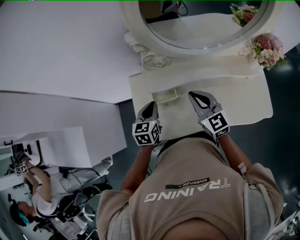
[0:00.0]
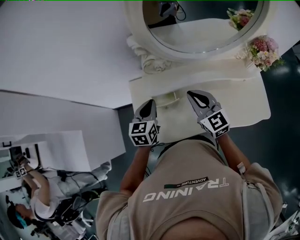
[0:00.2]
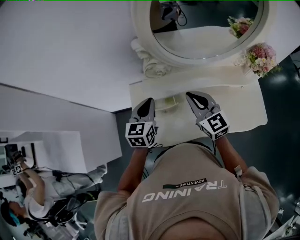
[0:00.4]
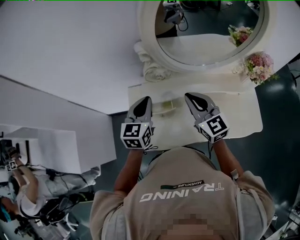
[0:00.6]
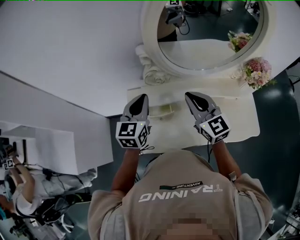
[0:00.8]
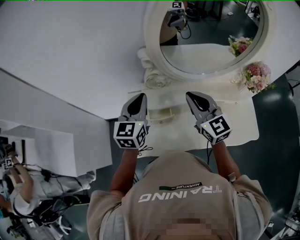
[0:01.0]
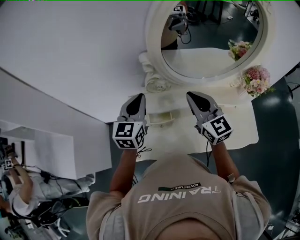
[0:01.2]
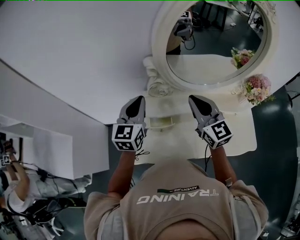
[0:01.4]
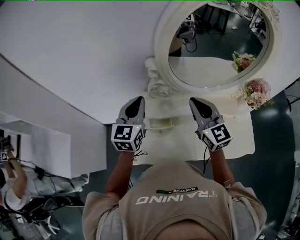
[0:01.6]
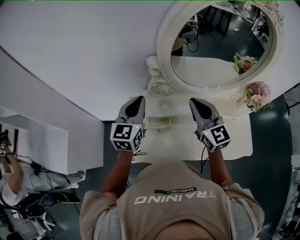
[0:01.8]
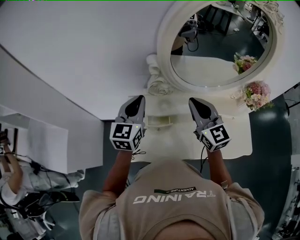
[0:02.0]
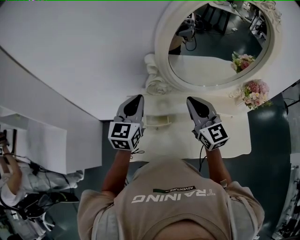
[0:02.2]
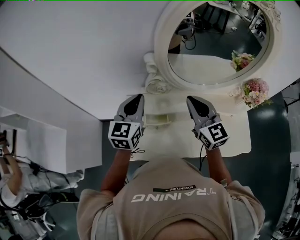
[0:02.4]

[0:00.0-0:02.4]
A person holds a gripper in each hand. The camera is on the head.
0.0 to 1.2 s: The grippers both shift upward by approximately 15 cm. The left gripper changes its angle by approximately 20 degrees.
1.2 to 2.4 s: There are only small adjustments of the grippers.

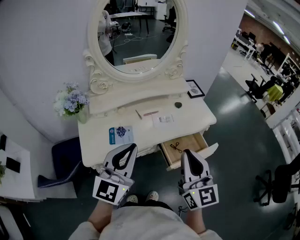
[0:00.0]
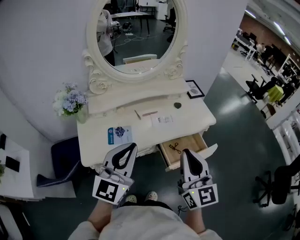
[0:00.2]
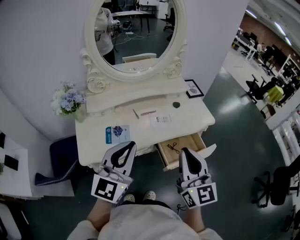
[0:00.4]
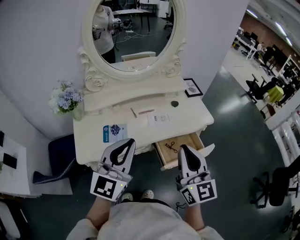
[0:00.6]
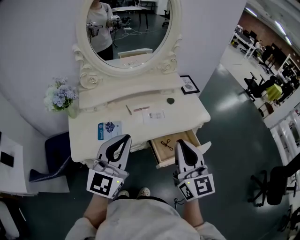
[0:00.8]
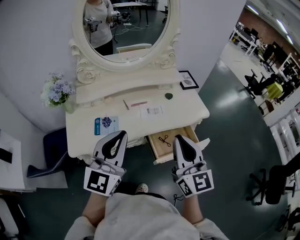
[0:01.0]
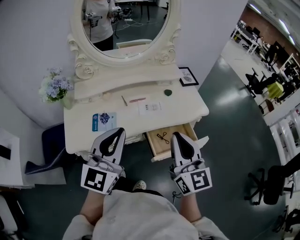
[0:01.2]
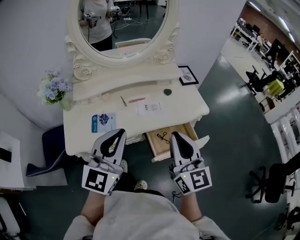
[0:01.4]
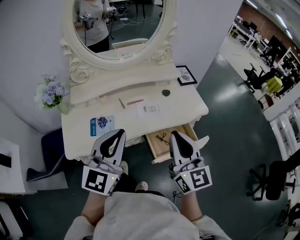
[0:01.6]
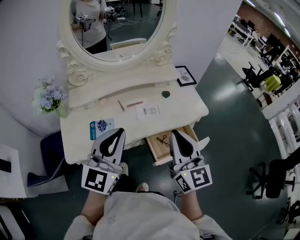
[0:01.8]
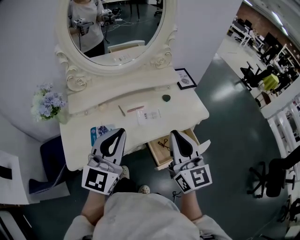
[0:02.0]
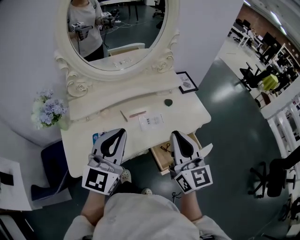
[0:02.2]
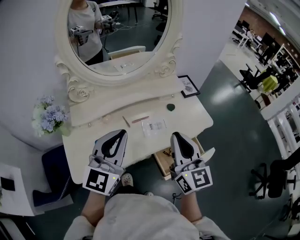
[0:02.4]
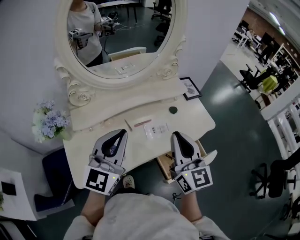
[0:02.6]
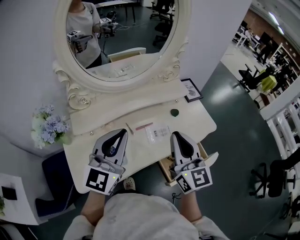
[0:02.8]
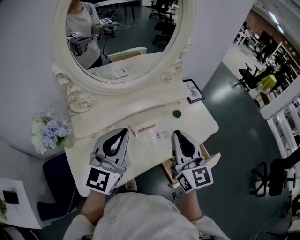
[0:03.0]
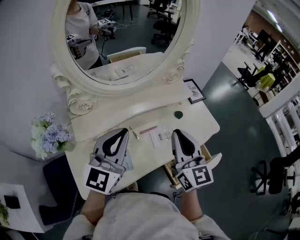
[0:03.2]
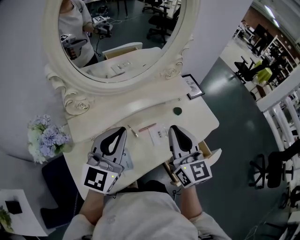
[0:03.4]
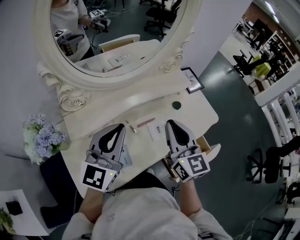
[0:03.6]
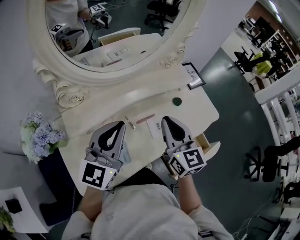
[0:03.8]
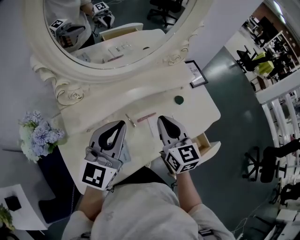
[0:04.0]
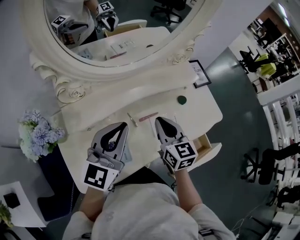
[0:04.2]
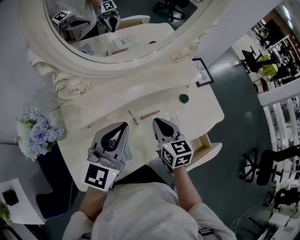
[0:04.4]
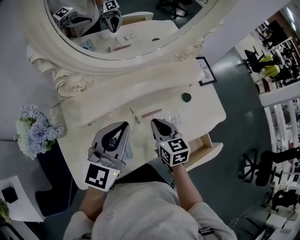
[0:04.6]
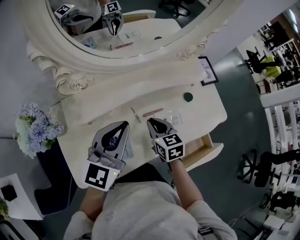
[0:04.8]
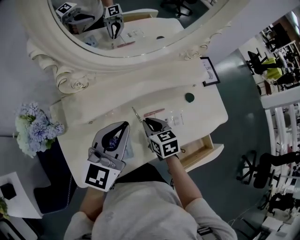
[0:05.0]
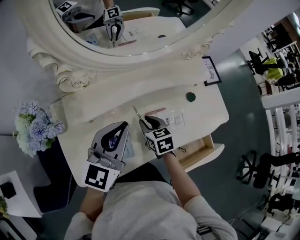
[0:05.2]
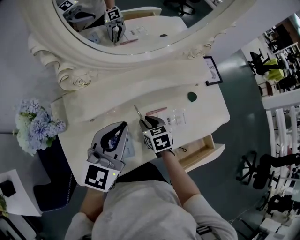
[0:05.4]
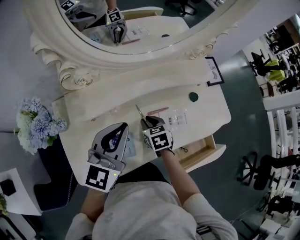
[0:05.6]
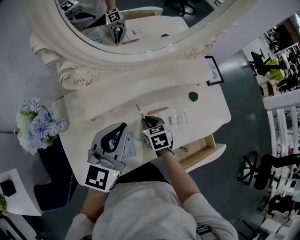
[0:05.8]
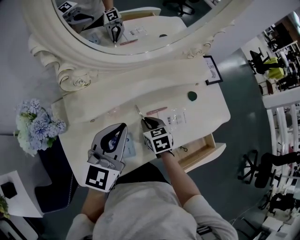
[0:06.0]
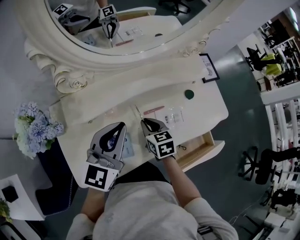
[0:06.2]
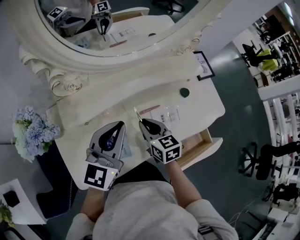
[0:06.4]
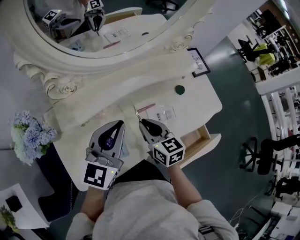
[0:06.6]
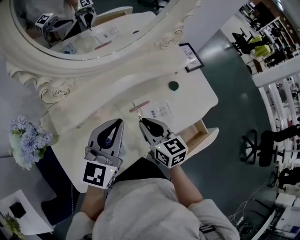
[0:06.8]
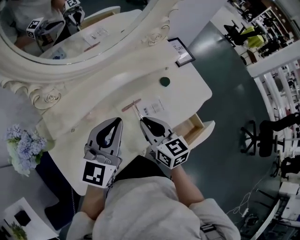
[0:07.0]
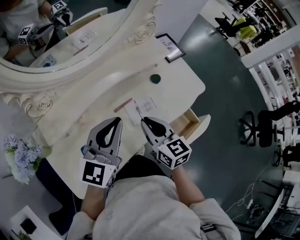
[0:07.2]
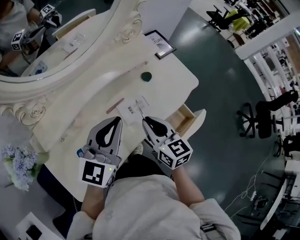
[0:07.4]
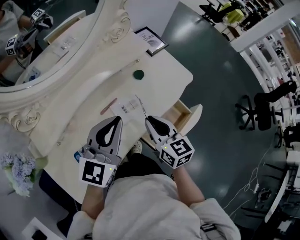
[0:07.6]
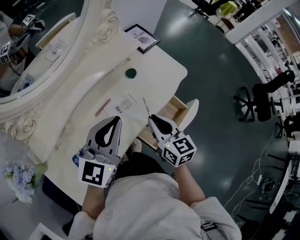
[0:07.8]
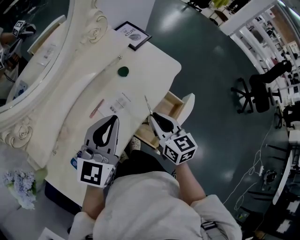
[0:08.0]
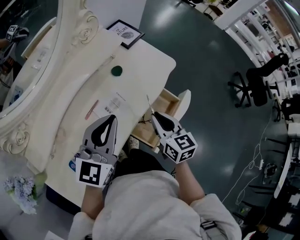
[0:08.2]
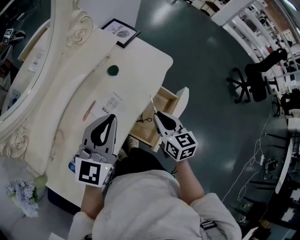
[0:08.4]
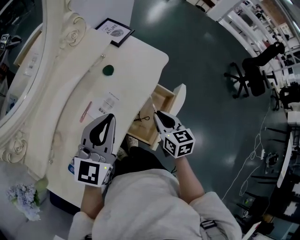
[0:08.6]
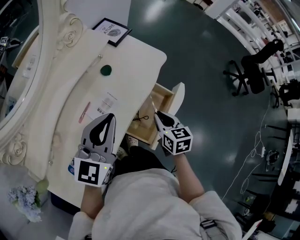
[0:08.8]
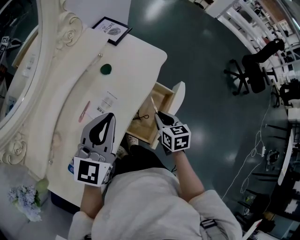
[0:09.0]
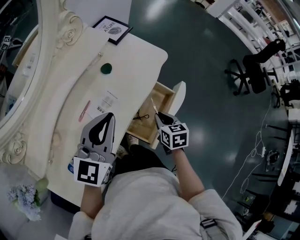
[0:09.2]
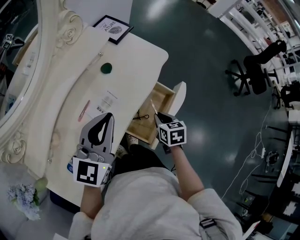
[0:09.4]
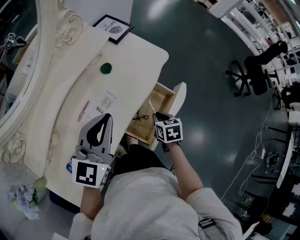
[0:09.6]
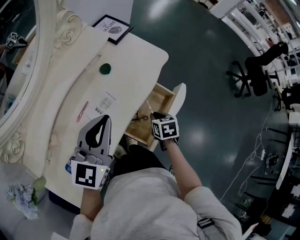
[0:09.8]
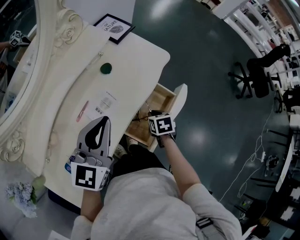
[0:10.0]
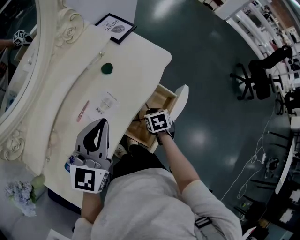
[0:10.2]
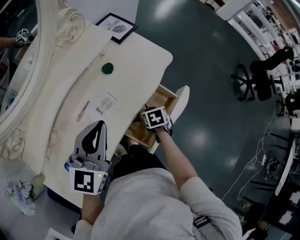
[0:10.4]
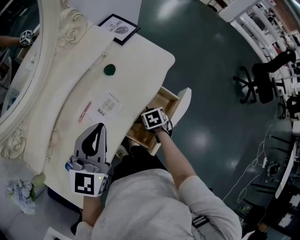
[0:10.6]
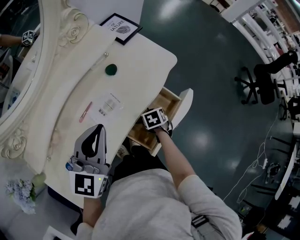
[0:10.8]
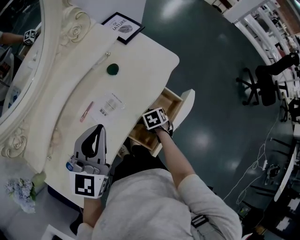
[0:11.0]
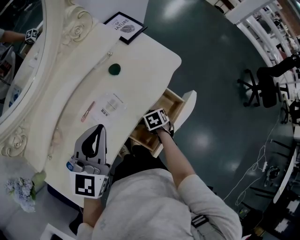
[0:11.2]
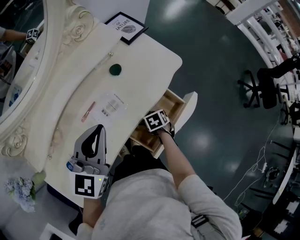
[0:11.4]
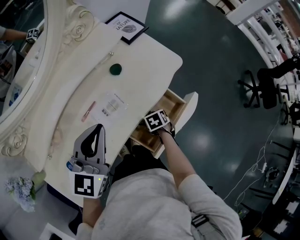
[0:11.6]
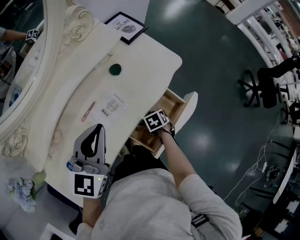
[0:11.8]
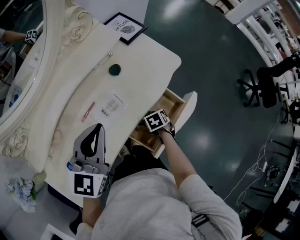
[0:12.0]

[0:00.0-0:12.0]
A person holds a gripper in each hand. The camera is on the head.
0.0 to 1.6 s: The right gripper goes some 10 cm forward and to the right. Meanwhile the left gripper travels to the right and forward by approximately 10 cm.
1.6 to 3.0 s: The two grippers go some 20 cm forward and to the left.
3.0 to 4.4 s: The left gripper shifts roughly 10 cm downward and forward; the right gripper shifts roughly 20 cm downward, forward and to the left, and swivels about 30 degrees.
4.4 to 6.0 s: The right gripper heads downward and to the left, covering some 15 cm, and rotates some 20 degrees.
6.0 to 7.6 s: The left gripper shifts roughly 20 cm to the right, and rotates approximately 20 degrees, while the right gripper shifts roughly 25 cm to the right and upward, and rotates approximately 40 degrees.
7.6 to 9.0 s: The right gripper travels to the right and downward by approximately 20 cm, and rotates about 30 degrees. Meanwhile the left gripper heads to the right, covering approximately 10 cm.
9.0 to 10.4 s: The right gripper is displaced downward by approximately 10 cm, and changes its angle by roughly 30 degrees.
10.4 to 12.0 s: The right gripper changes place by about 5 cm.

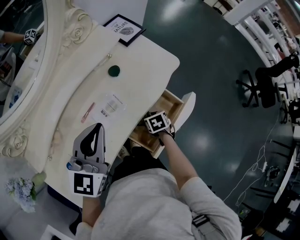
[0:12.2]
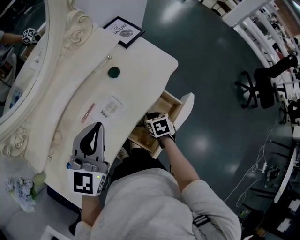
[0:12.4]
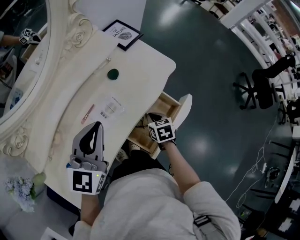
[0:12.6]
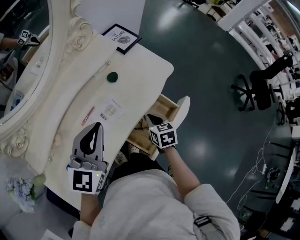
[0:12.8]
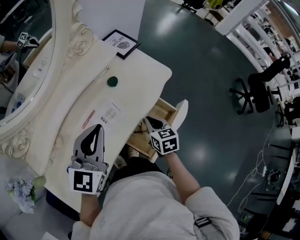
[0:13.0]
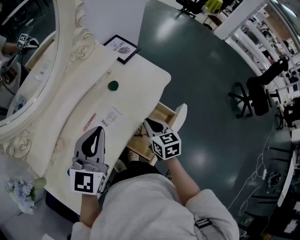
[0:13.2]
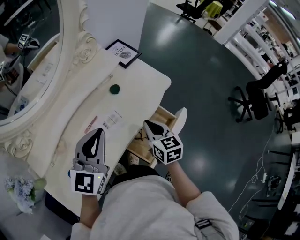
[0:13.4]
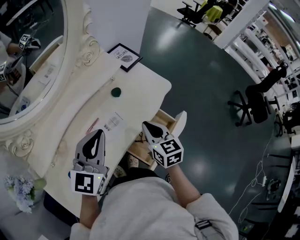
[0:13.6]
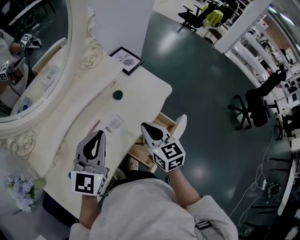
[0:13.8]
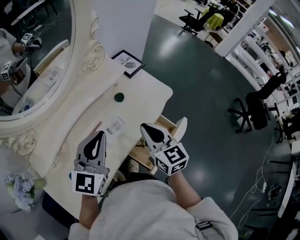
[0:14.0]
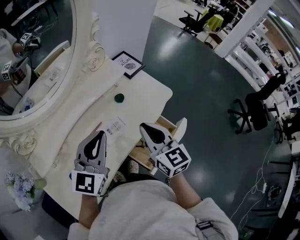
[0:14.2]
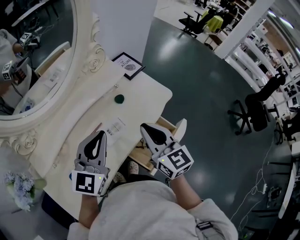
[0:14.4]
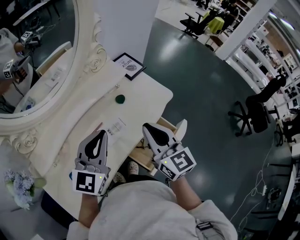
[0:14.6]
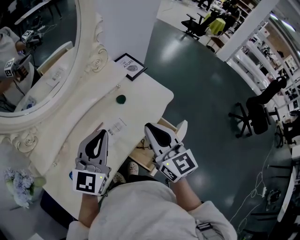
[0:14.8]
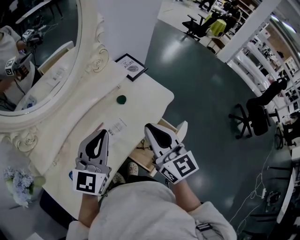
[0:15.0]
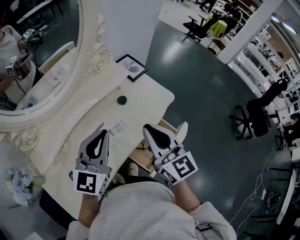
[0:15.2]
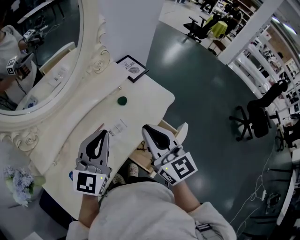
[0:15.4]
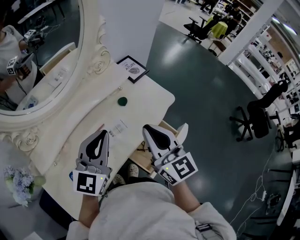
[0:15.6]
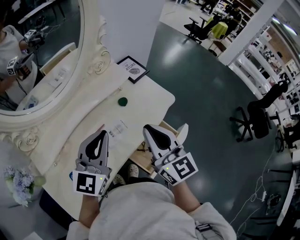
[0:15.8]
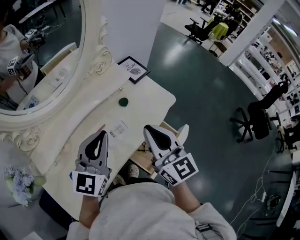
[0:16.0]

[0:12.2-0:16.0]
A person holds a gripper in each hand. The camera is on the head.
12.2 to 13.4 s: The right gripper travels upward by about 20 cm, and angles its fingers upward, by approximately 40 degrees.
13.4 to 14.8 s: The right gripper moves upward, some 15 cm, and changes its angle by some 30 degrees.
14.8 to 16.0 s: There are only small adjustments of the grippers.

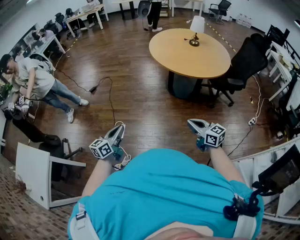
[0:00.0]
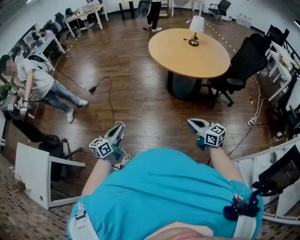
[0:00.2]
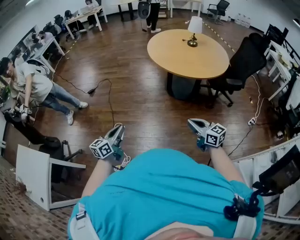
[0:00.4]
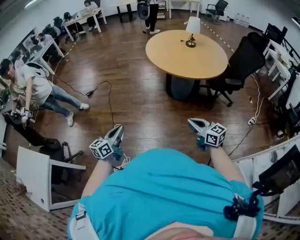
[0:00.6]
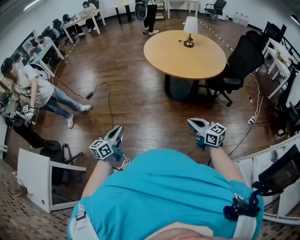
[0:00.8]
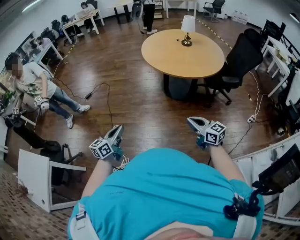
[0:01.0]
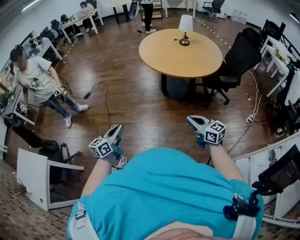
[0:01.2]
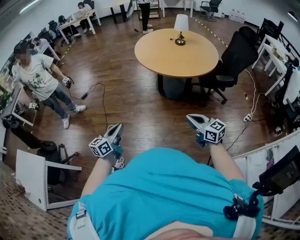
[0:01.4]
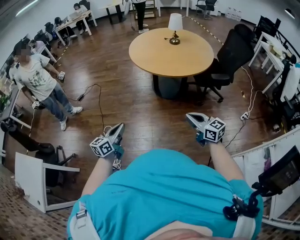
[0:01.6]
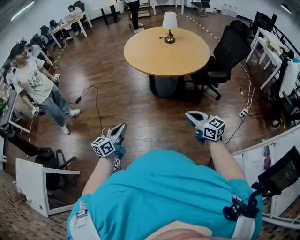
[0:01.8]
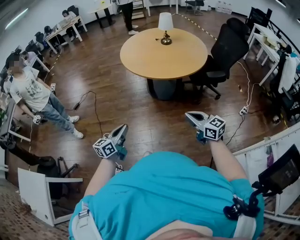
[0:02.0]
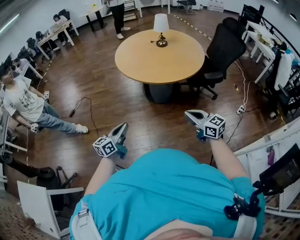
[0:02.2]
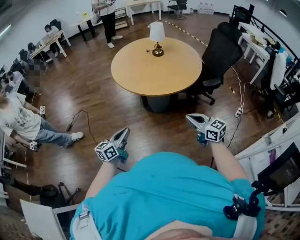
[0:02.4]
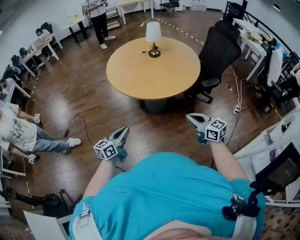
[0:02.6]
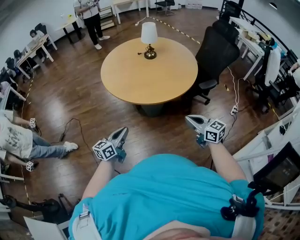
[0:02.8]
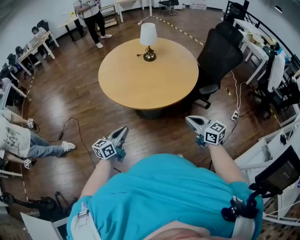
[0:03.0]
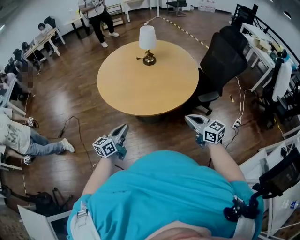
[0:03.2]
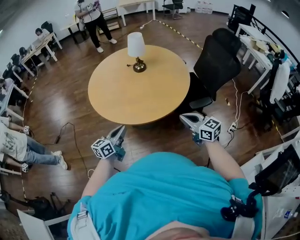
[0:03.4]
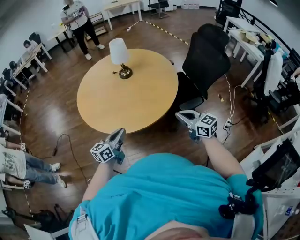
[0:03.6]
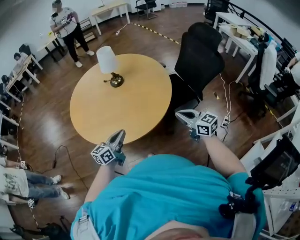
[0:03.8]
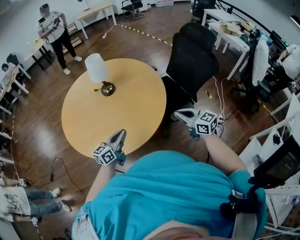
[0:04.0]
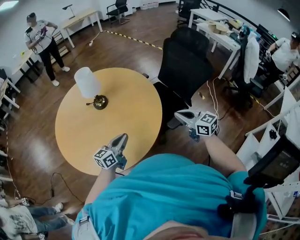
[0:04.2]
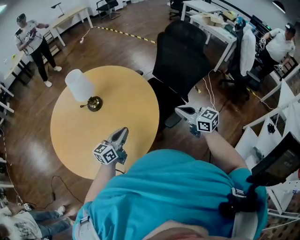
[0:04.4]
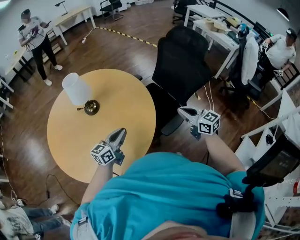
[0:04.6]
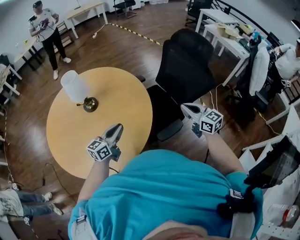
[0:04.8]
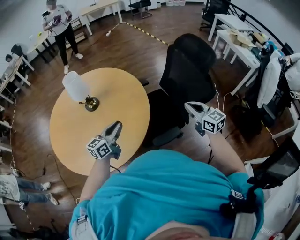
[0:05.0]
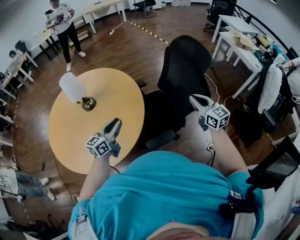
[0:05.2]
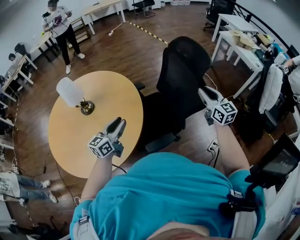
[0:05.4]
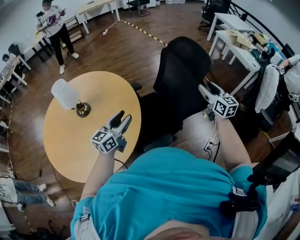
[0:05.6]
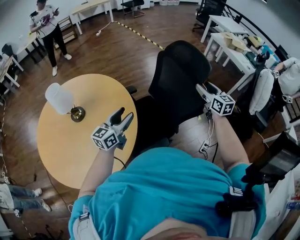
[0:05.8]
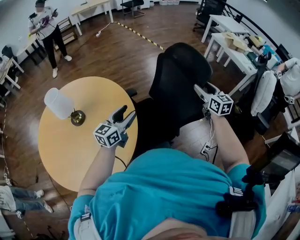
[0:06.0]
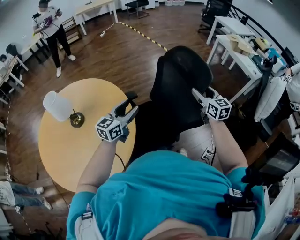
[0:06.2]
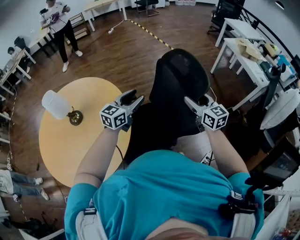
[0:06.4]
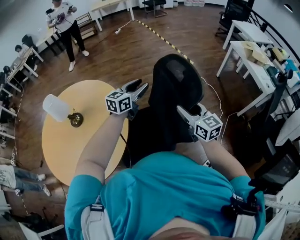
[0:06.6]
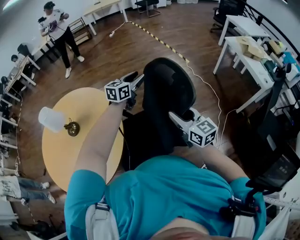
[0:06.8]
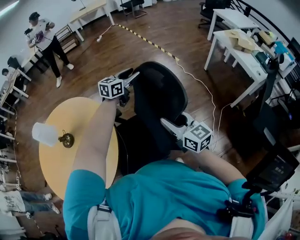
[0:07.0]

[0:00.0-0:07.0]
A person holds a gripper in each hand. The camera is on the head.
0.0 to 1.4 s: Both grippers move to the right, roughly 10 cm.
1.4 to 2.8 s: Both grippers travel together forward, about 25 cm. The left gripper changes its angle by approximately 20 degrees.
2.8 to 4.2 s: Both grippers travel together forward and to the right, roughly 40 cm.
4.2 to 5.6 s: Both grippers travel together to the right and forward, approximately 40 cm. The right gripper opens its fingers; the left gripper opens its fingers.
5.6 to 7.0 s: The right gripper heads forward, covering some 10 cm, and swivels some 20 degrees; the left gripper is displaced forward and to the right by about 50 cm.
